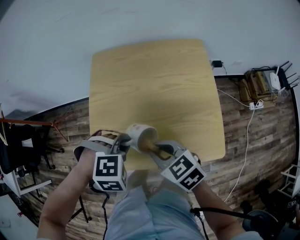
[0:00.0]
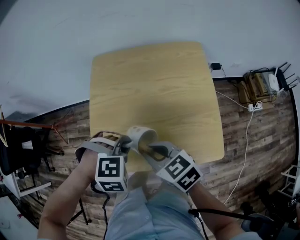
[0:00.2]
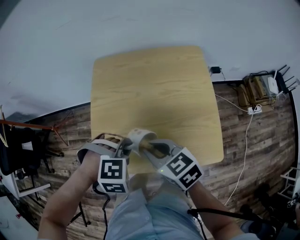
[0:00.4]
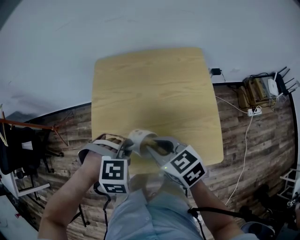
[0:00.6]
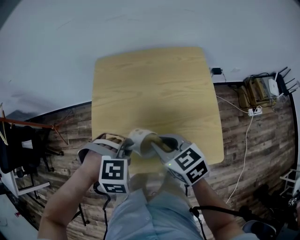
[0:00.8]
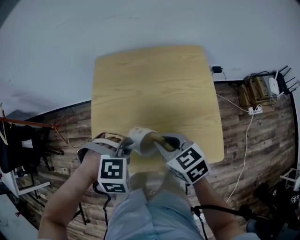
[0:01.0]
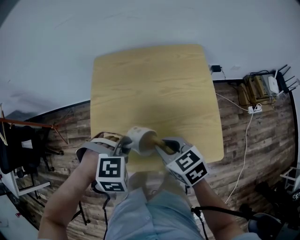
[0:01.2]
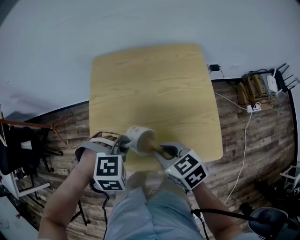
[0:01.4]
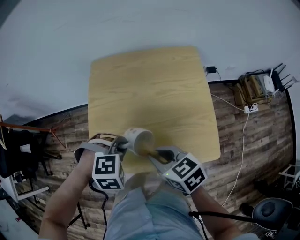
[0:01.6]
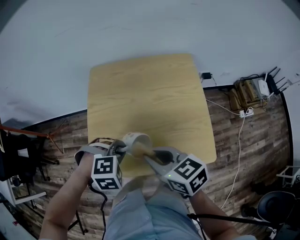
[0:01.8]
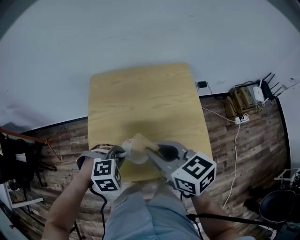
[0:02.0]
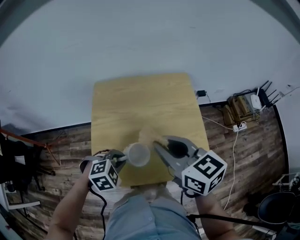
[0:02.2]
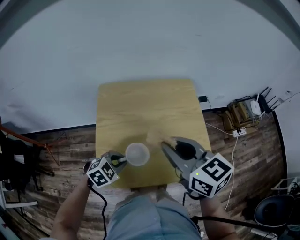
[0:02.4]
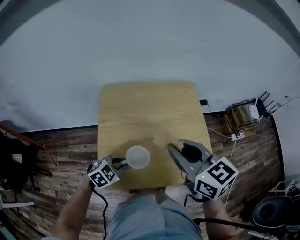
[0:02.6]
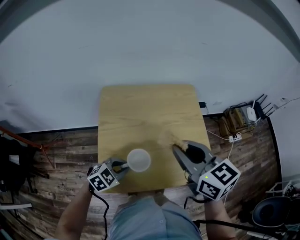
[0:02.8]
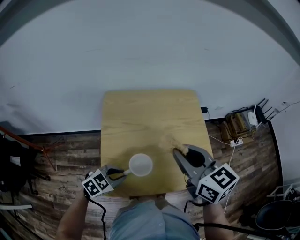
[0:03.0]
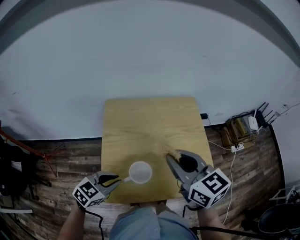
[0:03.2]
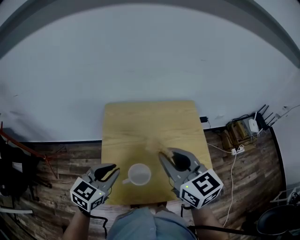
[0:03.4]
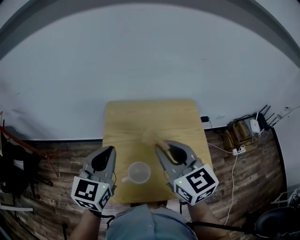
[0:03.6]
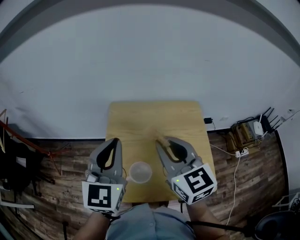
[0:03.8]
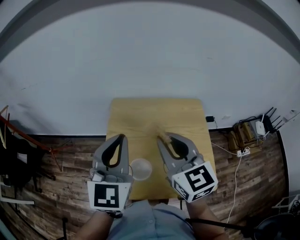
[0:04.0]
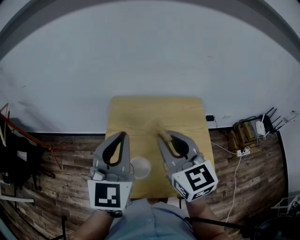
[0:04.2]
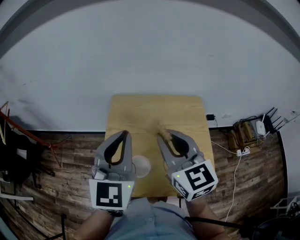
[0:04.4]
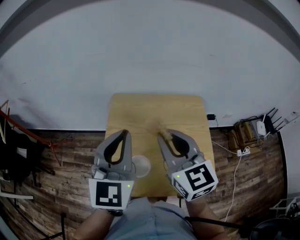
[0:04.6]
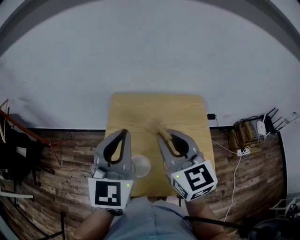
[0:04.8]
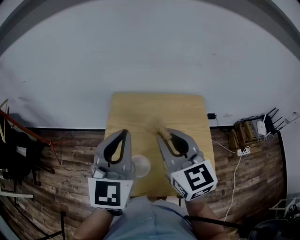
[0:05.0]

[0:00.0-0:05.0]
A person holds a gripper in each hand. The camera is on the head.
0:00.0 to 0:01.6: The grippers move only a little.
0:01.6 to 0:03.4: The left gripper is displaced upward by some 10 cm, and angles its fingers upward, by roughly 50 degrees. Meanwhile the right gripper goes some 20 cm upward, and changes its angle by about 30 degrees.
0:03.4 to 0:05.0: The left gripper moves upward and to the right, about 15 cm, and rotates some 40 degrees.

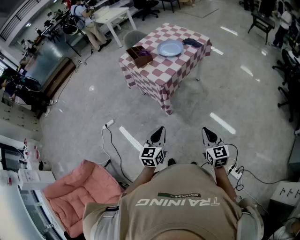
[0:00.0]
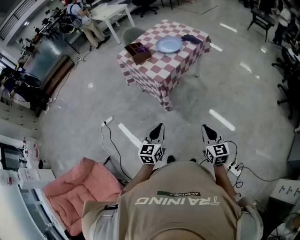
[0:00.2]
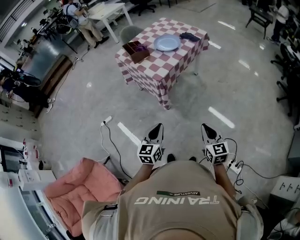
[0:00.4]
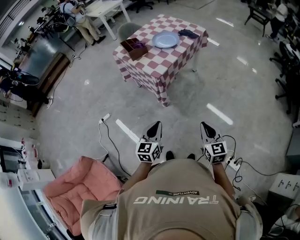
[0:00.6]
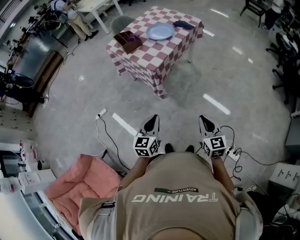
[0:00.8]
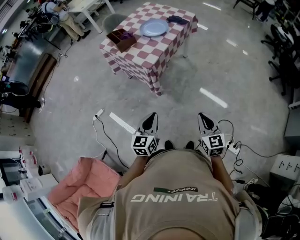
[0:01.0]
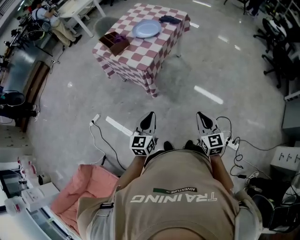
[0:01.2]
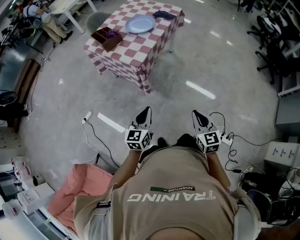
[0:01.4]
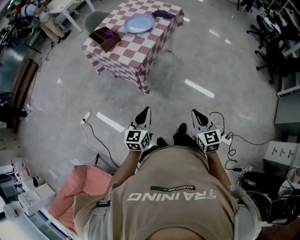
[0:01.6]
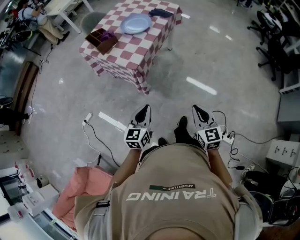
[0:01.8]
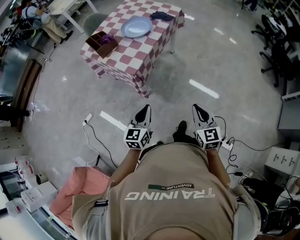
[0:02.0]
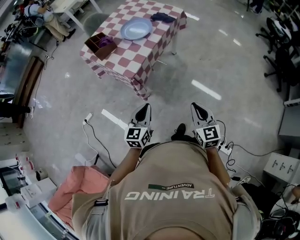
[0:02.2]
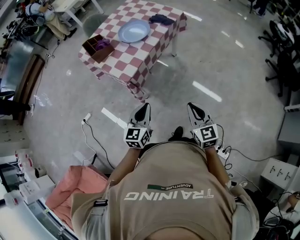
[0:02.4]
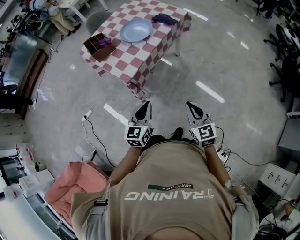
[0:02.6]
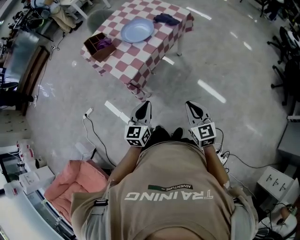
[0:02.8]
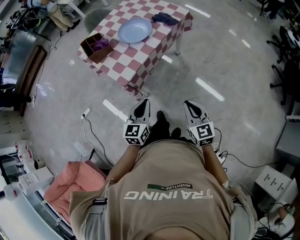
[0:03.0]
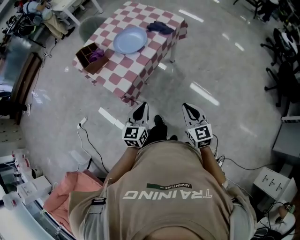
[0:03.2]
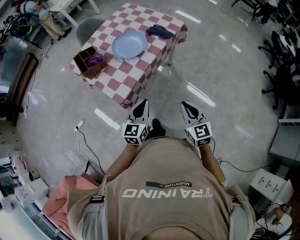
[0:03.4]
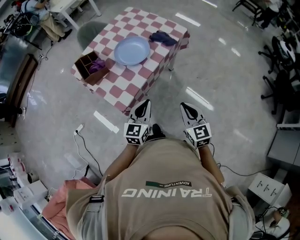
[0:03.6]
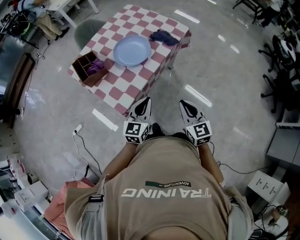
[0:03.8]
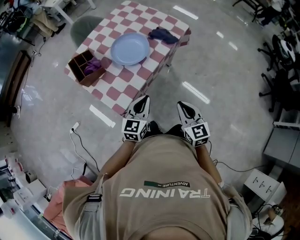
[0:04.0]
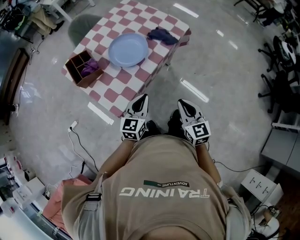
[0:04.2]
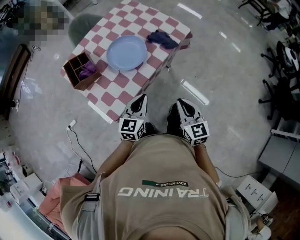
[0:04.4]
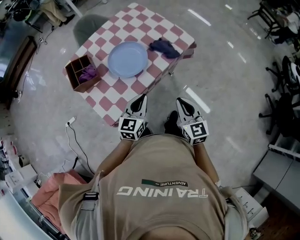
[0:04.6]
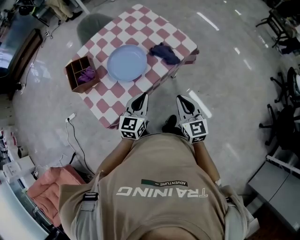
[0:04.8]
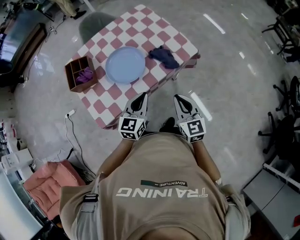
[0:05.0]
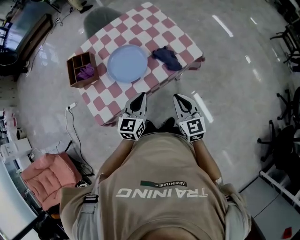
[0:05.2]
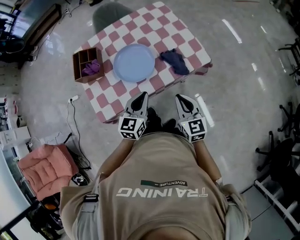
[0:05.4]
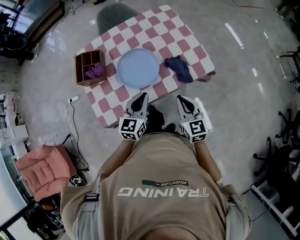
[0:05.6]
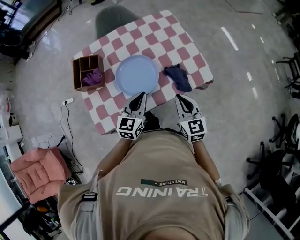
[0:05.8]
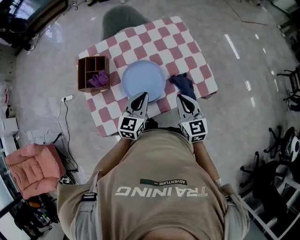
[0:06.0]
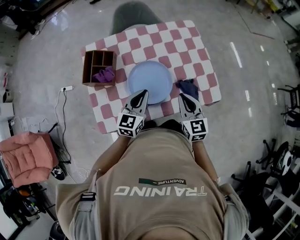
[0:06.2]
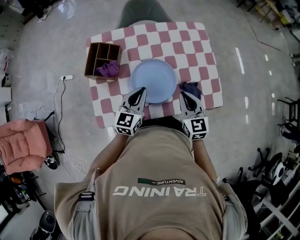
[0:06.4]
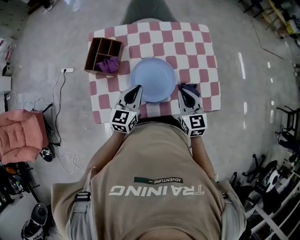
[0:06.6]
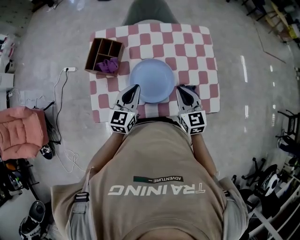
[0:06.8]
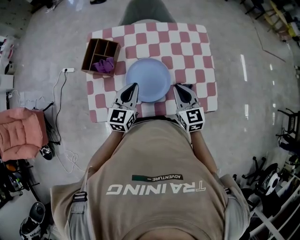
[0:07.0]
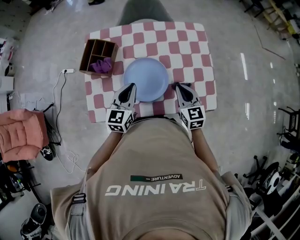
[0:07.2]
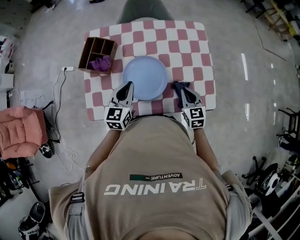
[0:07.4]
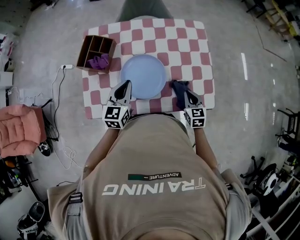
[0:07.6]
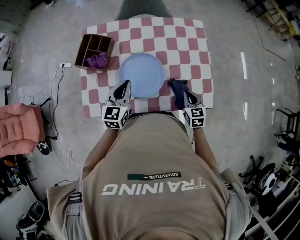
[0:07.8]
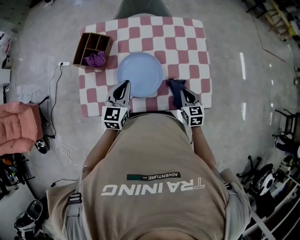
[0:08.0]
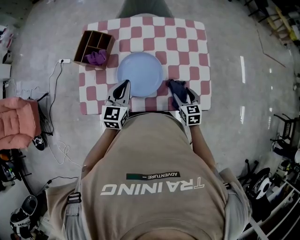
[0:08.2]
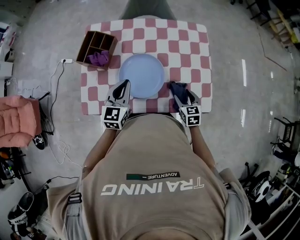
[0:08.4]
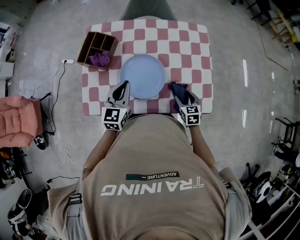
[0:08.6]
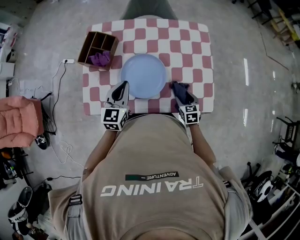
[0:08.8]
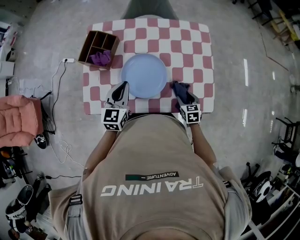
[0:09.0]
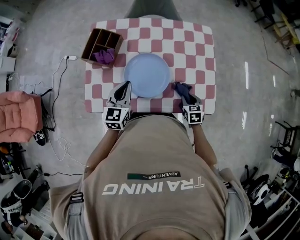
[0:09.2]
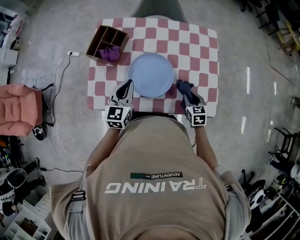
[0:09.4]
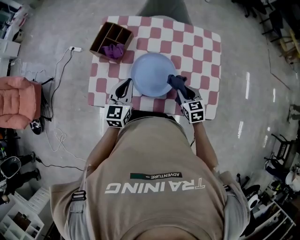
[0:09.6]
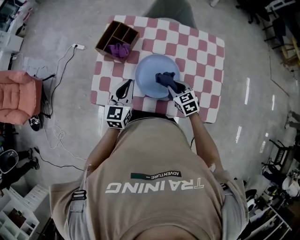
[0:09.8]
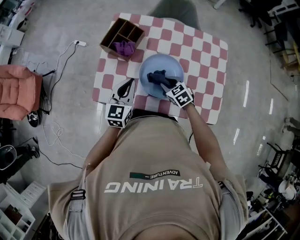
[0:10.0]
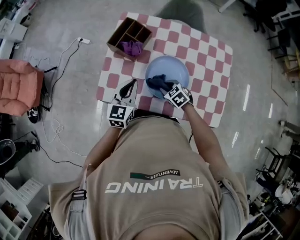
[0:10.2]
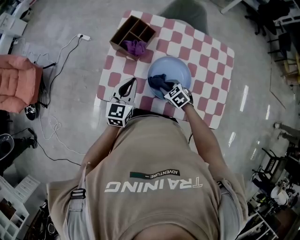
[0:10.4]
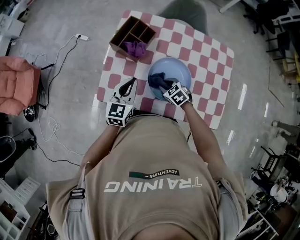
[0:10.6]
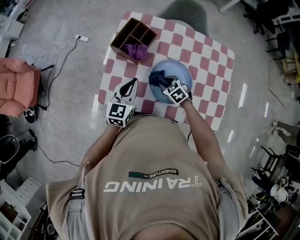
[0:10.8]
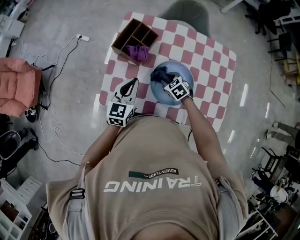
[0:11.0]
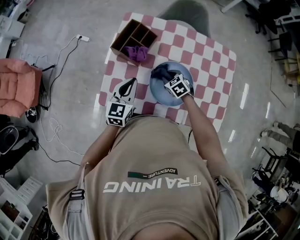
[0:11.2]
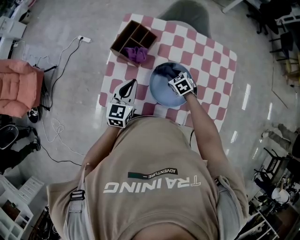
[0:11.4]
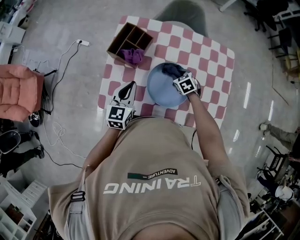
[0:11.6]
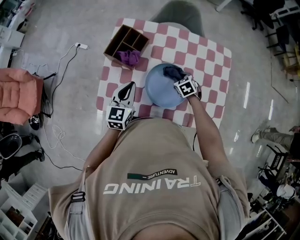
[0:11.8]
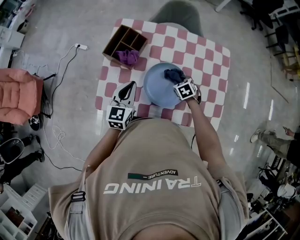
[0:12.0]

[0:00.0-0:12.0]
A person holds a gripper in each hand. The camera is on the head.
0:00.0 to 0:01.6: The left gripper moves forward, approximately 5 cm.
0:01.6 to 0:03.0: The two grippers go some 25 cm forward and to the right.
0:03.0 to 0:04.4: The two grippers go approximately 25 cm forward.
0:04.4 to 0:06.0: The left gripper moves some 25 cm, and swivels some 30 degrees. Meanwhile the right gripper ends up approximately 30 cm from where it was, and turns by approximately 30 degrees.
0:06.0 to 0:07.6: The left gripper goes some 5 cm to the left, and changes its angle by approximately 20 degrees. Meanwhile the right gripper goes roughly 20 cm downward, to the right and forward, and turns by about 20 degrees.
0:07.6 to 0:09.0: The right gripper shifts roughly 5 cm downward, and opens its fingers.
0:09.0 to 0:10.4: The left gripper changes place by approximately 10 cm, while the right gripper goes upward and returns, approximately 10 cm each way, changes its angle by roughly 50 degrees, and closes up.
0:10.4 to 0:12.0: The right gripper heads to the right and forward, covering approximately 15 cm, and turns by about 20 degrees.

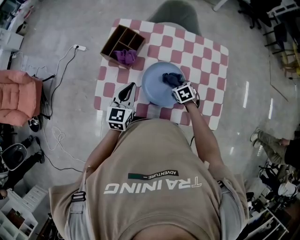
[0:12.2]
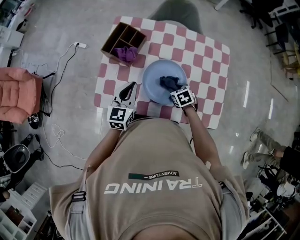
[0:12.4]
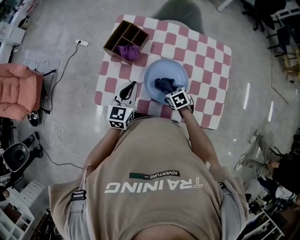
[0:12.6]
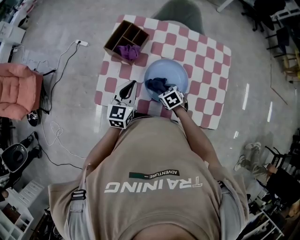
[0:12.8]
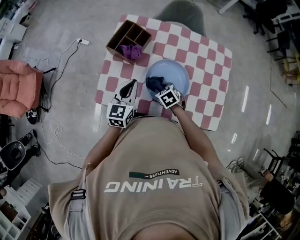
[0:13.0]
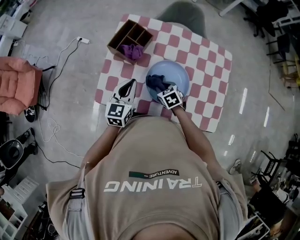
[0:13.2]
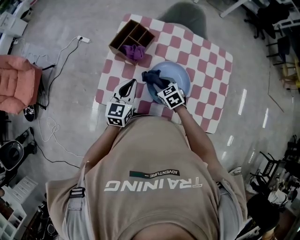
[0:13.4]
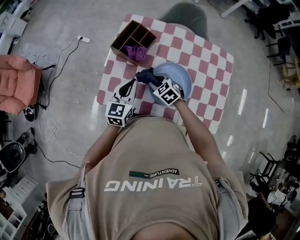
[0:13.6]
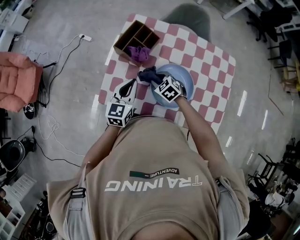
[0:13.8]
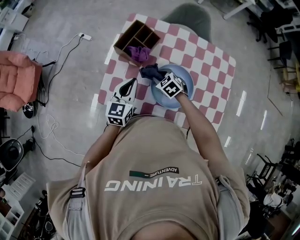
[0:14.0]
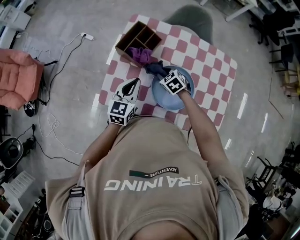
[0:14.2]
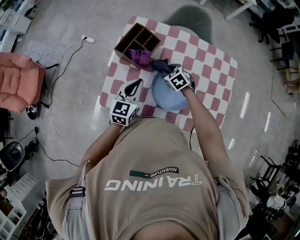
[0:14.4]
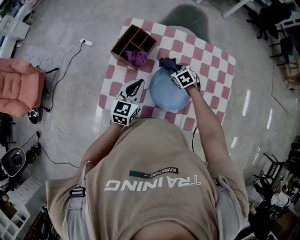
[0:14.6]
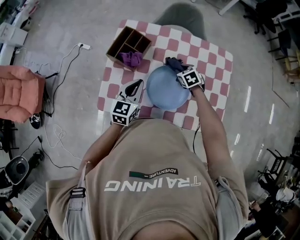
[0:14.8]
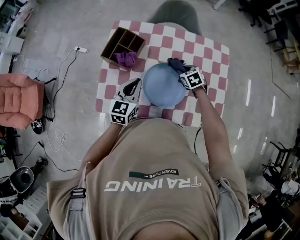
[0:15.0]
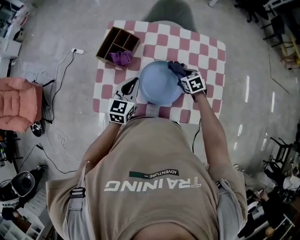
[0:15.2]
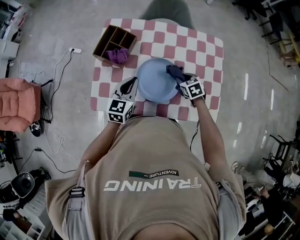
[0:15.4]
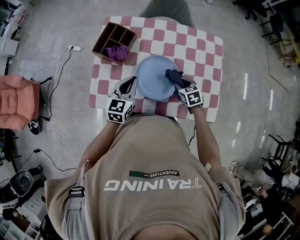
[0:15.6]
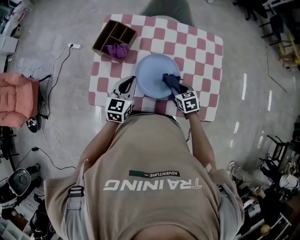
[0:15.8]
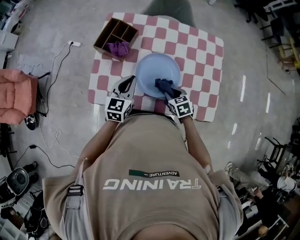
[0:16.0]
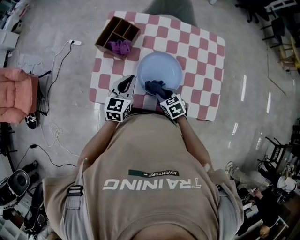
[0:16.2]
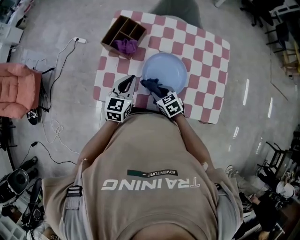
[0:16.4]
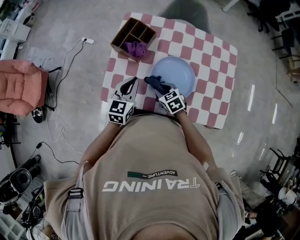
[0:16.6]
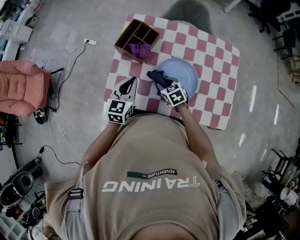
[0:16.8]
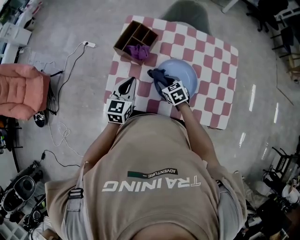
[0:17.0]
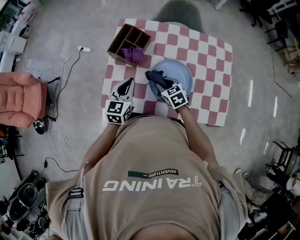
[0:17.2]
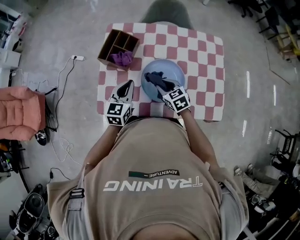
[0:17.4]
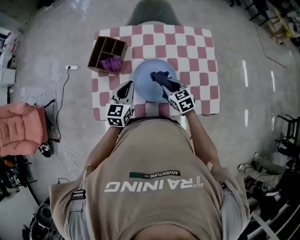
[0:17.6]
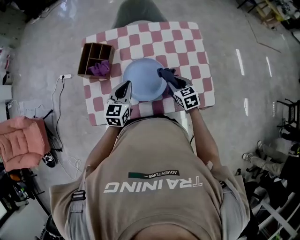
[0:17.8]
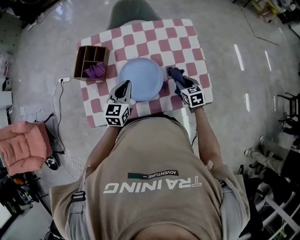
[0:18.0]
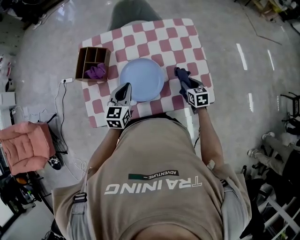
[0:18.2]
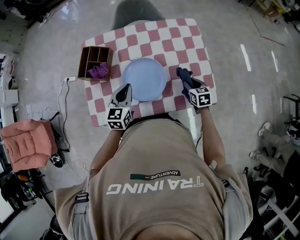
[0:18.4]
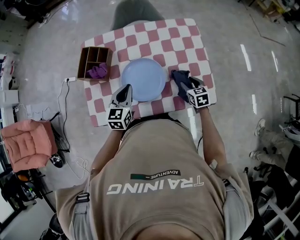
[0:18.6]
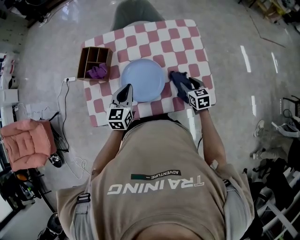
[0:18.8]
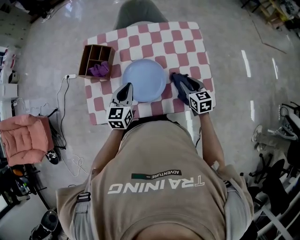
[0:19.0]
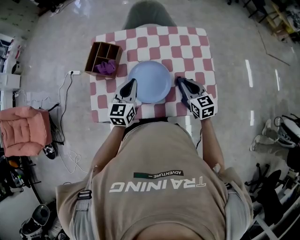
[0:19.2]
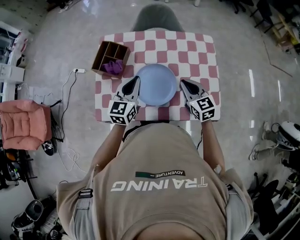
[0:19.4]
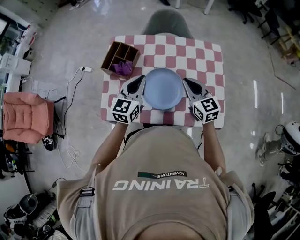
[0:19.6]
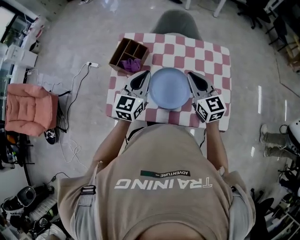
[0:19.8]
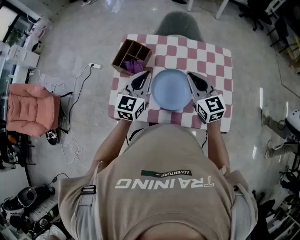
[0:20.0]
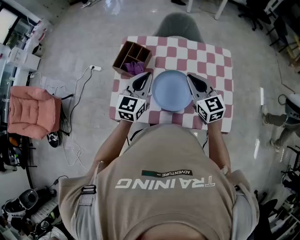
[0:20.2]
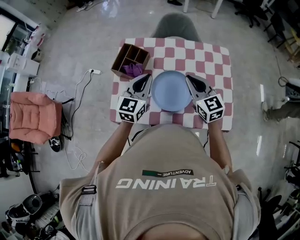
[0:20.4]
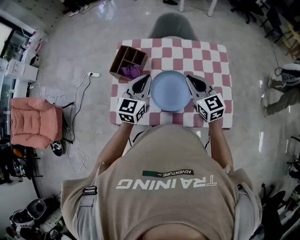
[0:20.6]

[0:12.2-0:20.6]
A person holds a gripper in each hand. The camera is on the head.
0:12.2 to 0:13.6: The right gripper heads to the left, covering some 20 cm, and rotates about 30 degrees.
0:13.6 to 0:15.0: The left gripper moves to the right, some 5 cm. The right gripper is displaced to the right by about 20 cm, and changes its angle by roughly 30 degrees.
0:15.0 to 0:16.4: The right gripper travels backward and to the left by roughly 25 cm.
0:16.4 to 0:17.8: The left gripper changes place by roughly 10 cm; the right gripper moves about 20 cm, and changes its angle by about 30 degrees.
0:17.8 to 0:19.2: The right gripper is displaced upward by some 5 cm.
0:19.2 to 0:20.6: The right gripper moves upward and to the left, about 15 cm; the left gripper goes roughly 5 cm upward.
